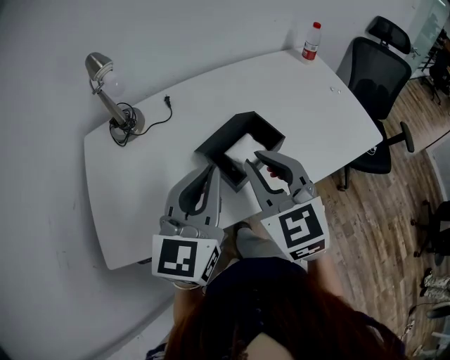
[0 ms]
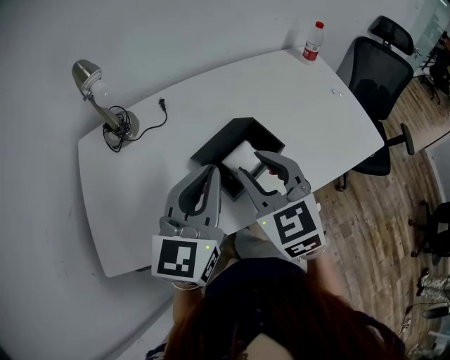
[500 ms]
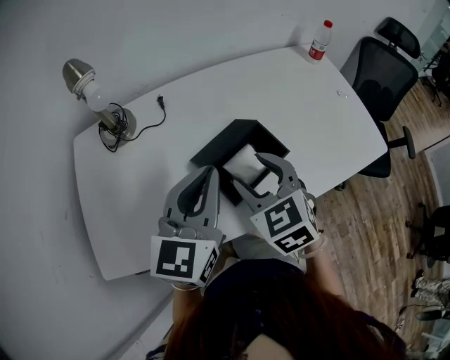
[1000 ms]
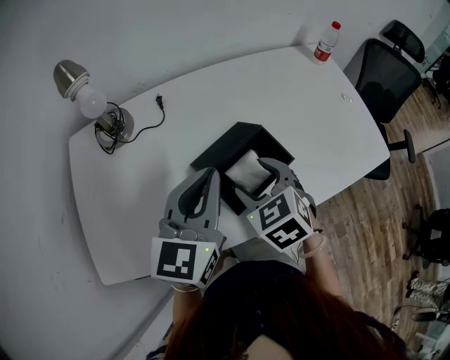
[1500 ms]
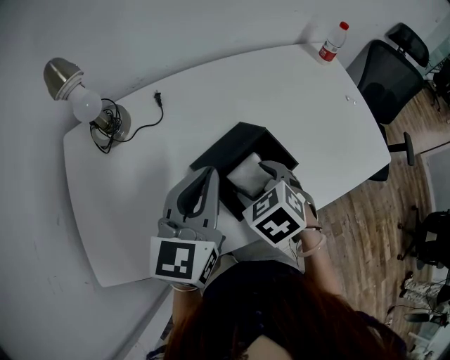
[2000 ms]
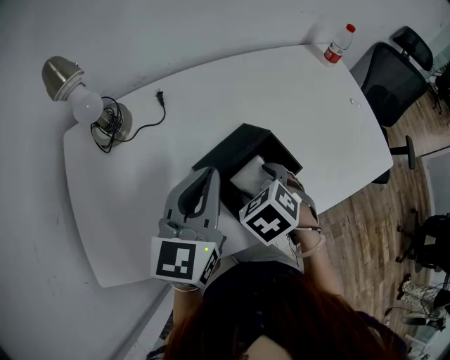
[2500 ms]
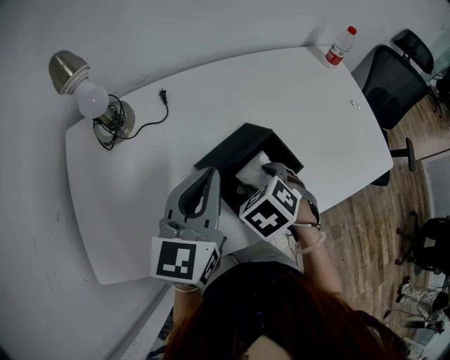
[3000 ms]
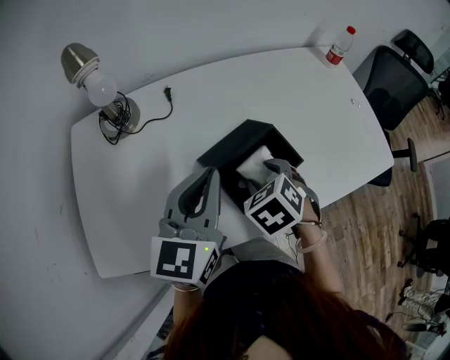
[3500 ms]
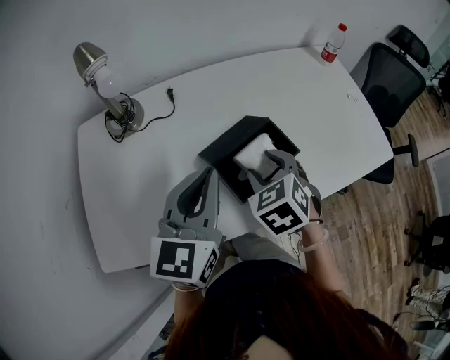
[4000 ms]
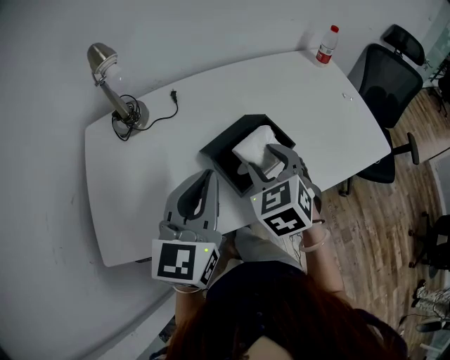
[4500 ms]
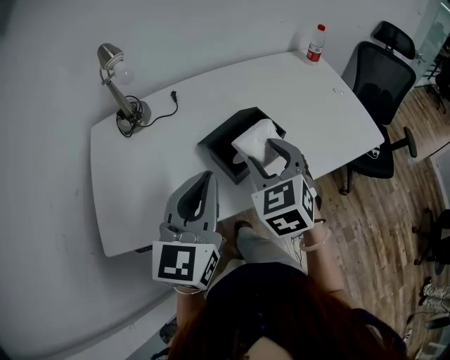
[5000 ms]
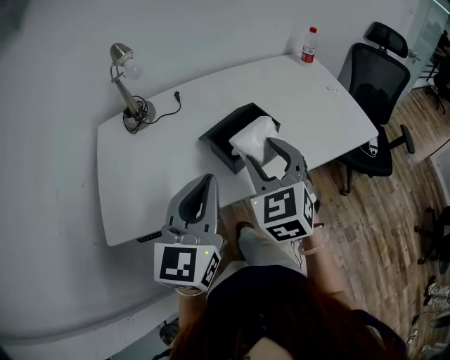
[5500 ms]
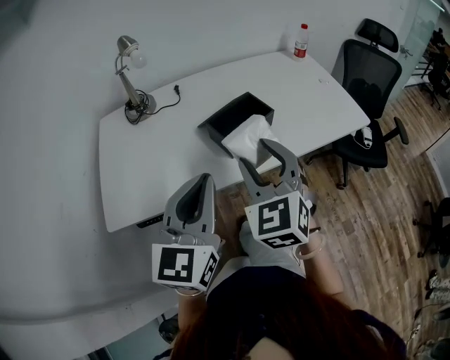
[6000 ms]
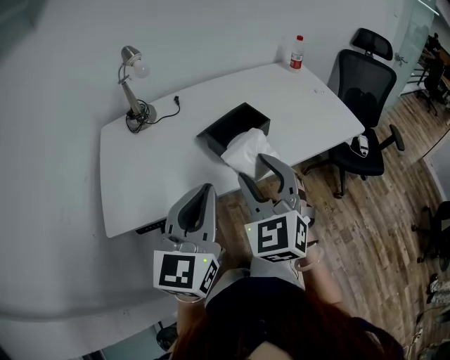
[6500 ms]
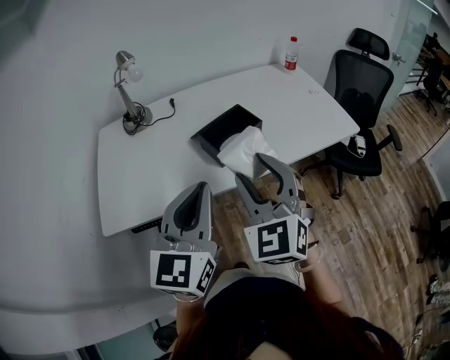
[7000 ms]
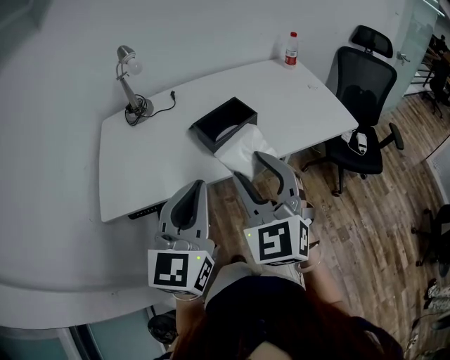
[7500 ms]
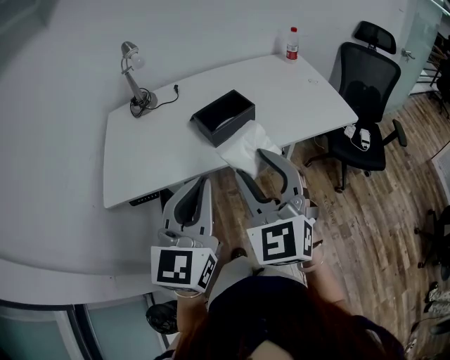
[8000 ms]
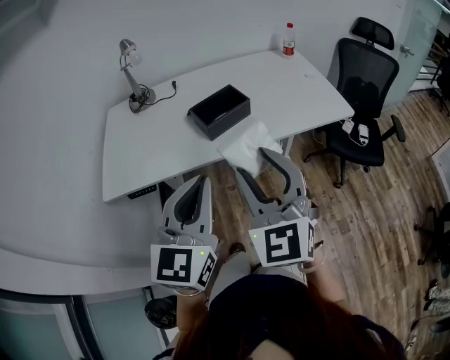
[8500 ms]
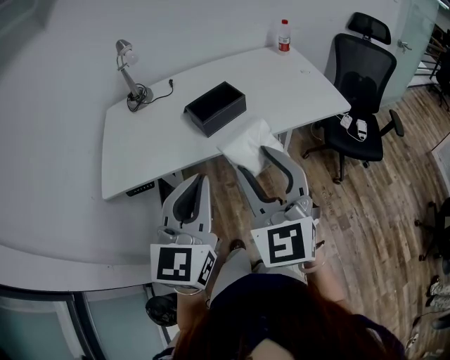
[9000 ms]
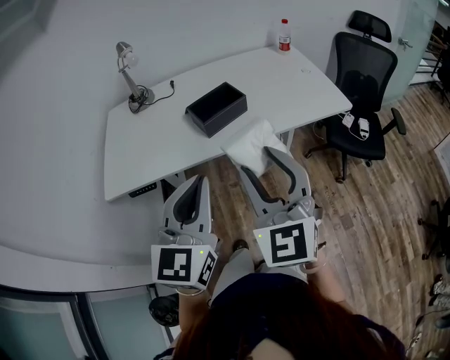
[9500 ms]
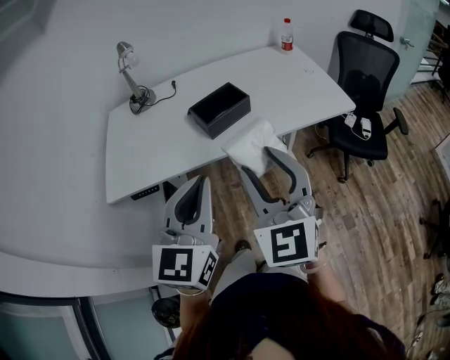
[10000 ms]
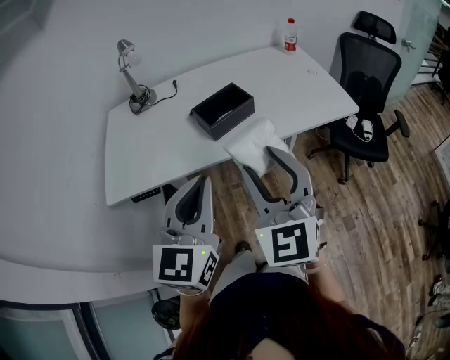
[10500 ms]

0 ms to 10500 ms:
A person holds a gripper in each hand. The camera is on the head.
0 ms to 2000 ms: The right gripper is displaced downward and forward by about 20 cm, tilts its fingers roughly 40 degrees downward, and opens its fingers. Meanwhile the left gripper travels forward and downward by approximately 10 cm.
2000 ms to 4000 ms: The left gripper ends up approximately 5 cm from where it was.
4000 ms to 6500 ms: The left gripper moves backward, approximately 20 cm; the right gripper goes approximately 25 cm backward and upward, and tilts its fingers roughly 40 degrees upward.
6500 ms to 8500 ms: The two grippers go some 15 cm backward and to the right.
8500 ms to 10500 ms: The grippers stay close to where they were, moving slightly.

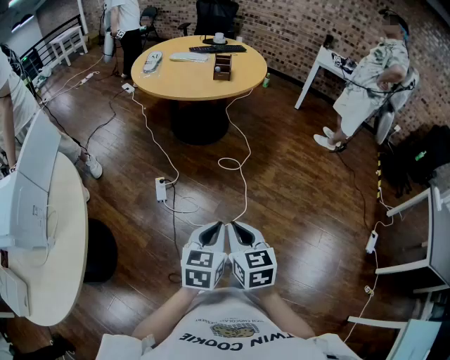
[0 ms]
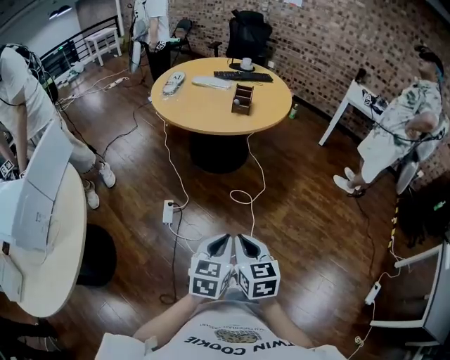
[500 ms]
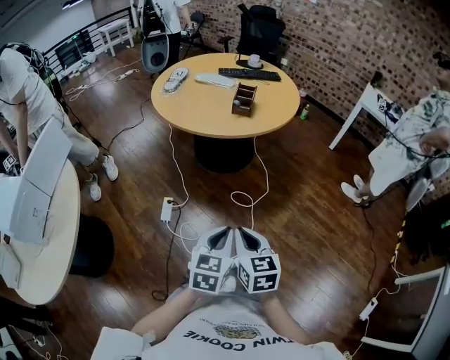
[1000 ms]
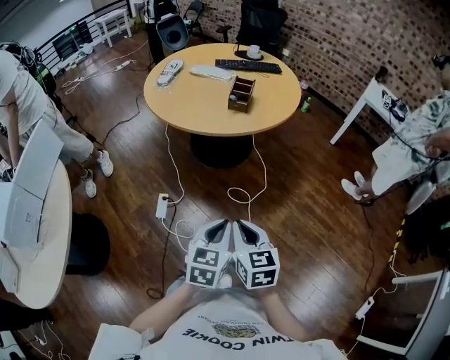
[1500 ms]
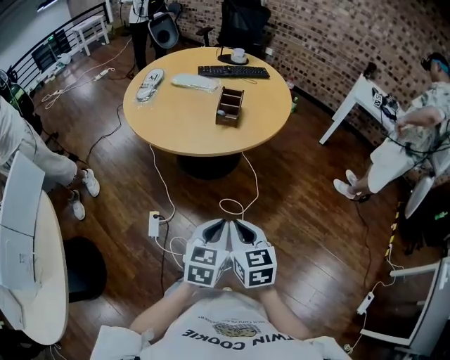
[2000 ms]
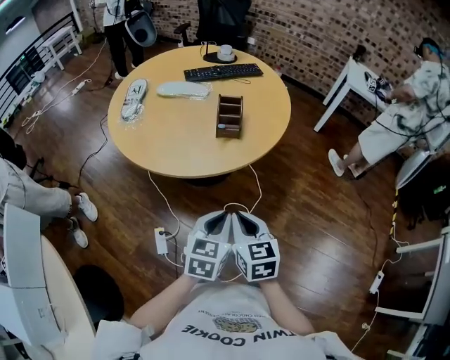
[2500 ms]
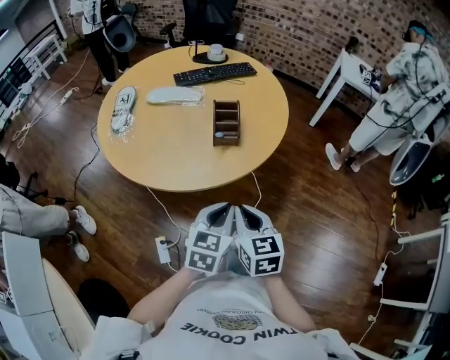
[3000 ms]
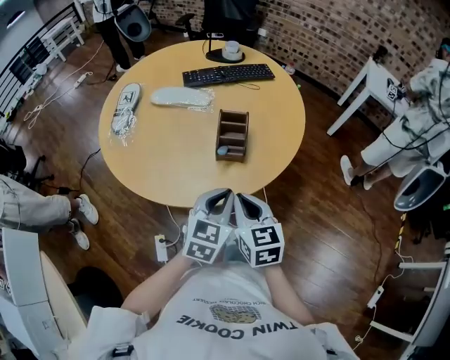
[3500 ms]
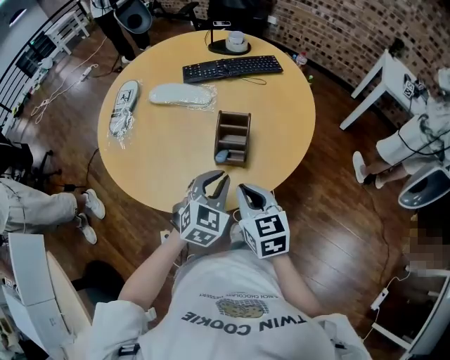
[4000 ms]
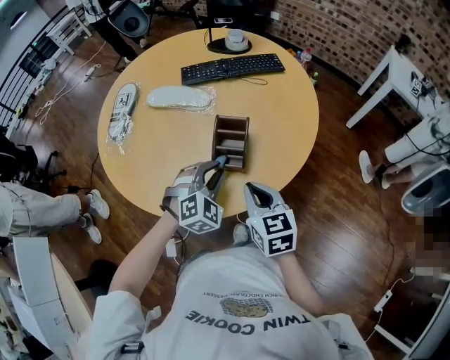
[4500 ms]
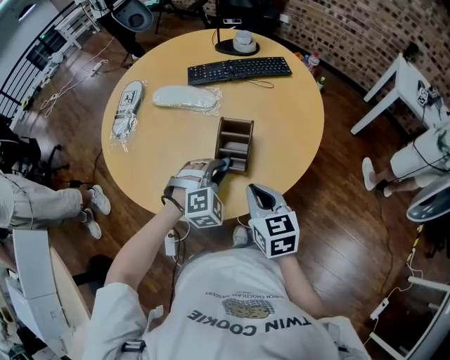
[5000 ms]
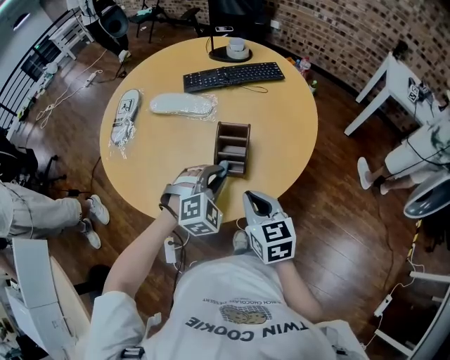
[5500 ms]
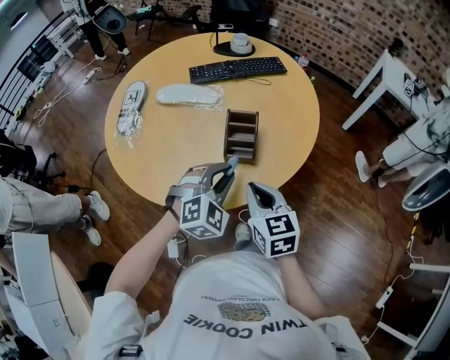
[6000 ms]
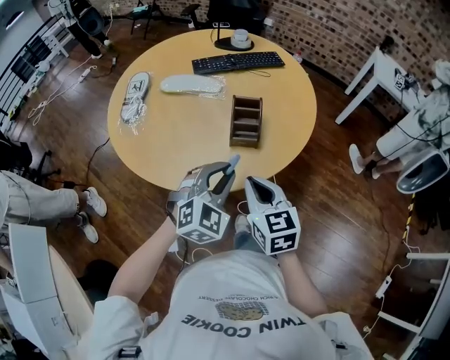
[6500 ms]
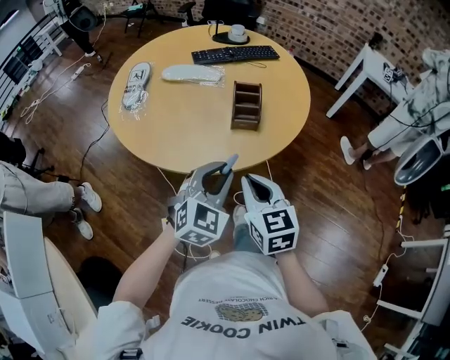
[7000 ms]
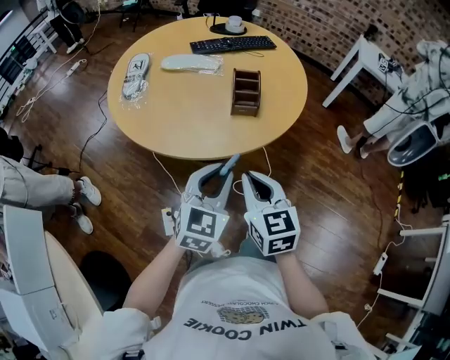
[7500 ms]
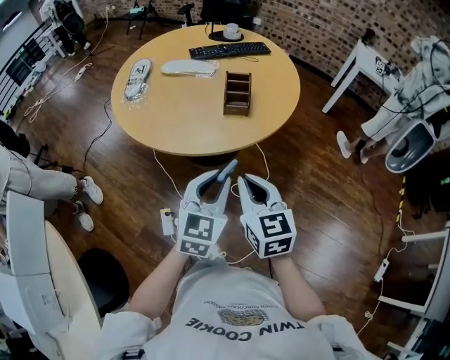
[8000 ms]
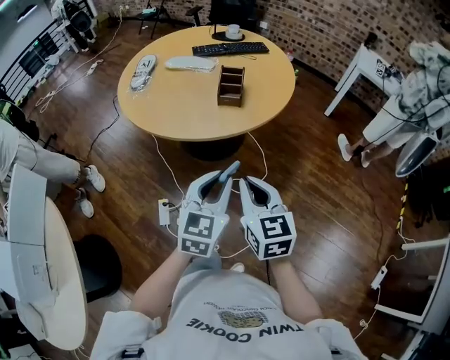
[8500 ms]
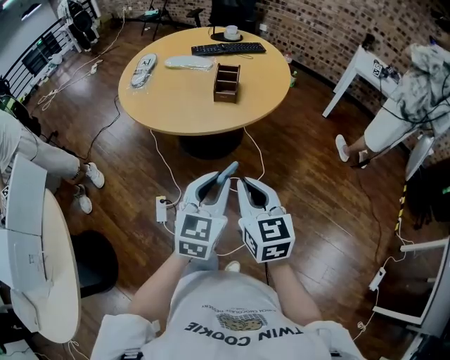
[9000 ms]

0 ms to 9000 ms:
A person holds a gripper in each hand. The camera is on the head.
0 ms to 2000 ms: The two grippers travel together, forward, about 40 cm.
2000 ms to 4500 ms: The pair of grippers is taken forward, approximately 40 cm. The left gripper rolls clockwise, seen from behind, by some 60 degrees, and opens.
4500 ms to 7000 ms: The right gripper is displaced backward and to the left by roughly 20 cm, while the left gripper is displaced backward and upward by approximately 25 cm, and rotates approximately 30 degrees.
7000 ms to 9000 ms: Both grippers move backward and to the right, approximately 25 cm. The left gripper changes its angle by roughly 30 degrees.

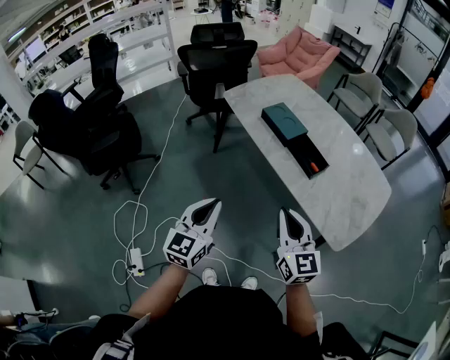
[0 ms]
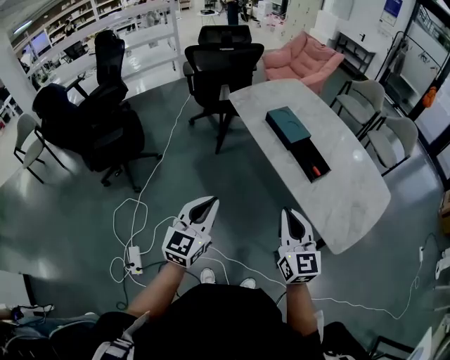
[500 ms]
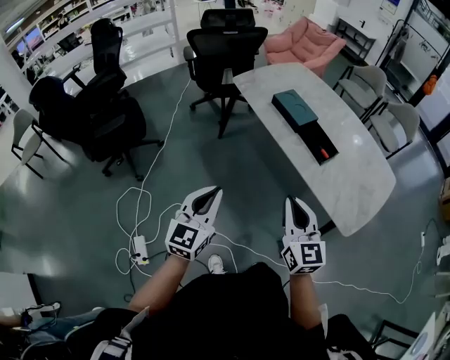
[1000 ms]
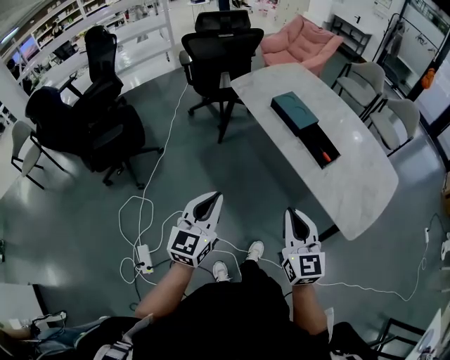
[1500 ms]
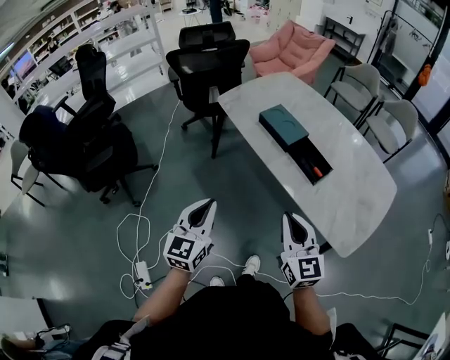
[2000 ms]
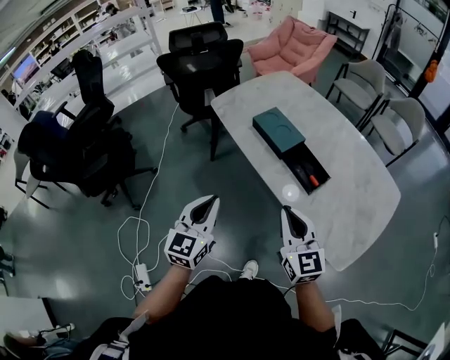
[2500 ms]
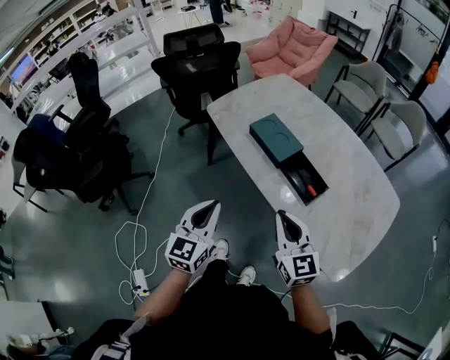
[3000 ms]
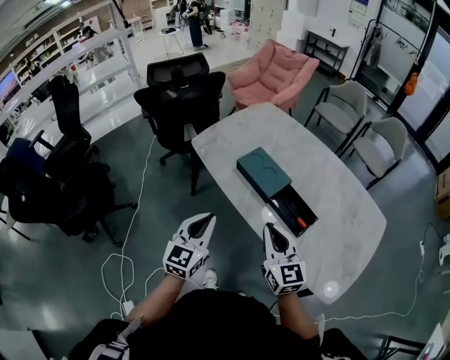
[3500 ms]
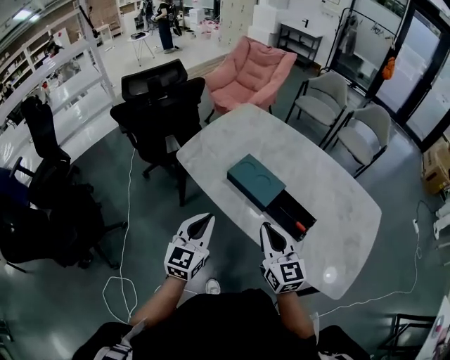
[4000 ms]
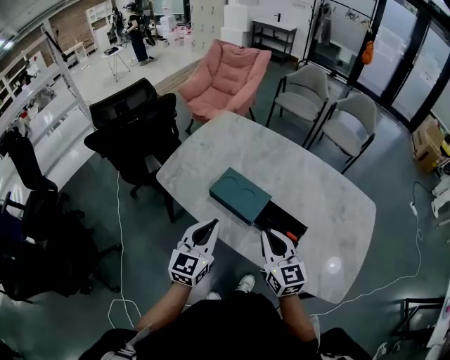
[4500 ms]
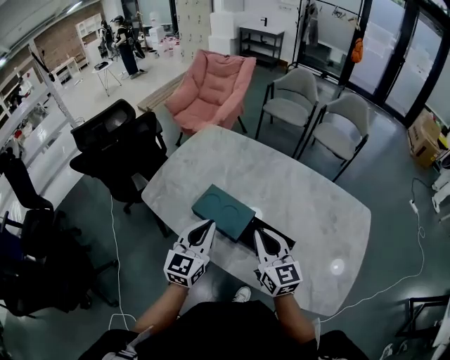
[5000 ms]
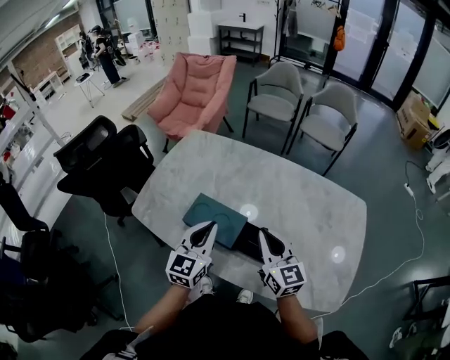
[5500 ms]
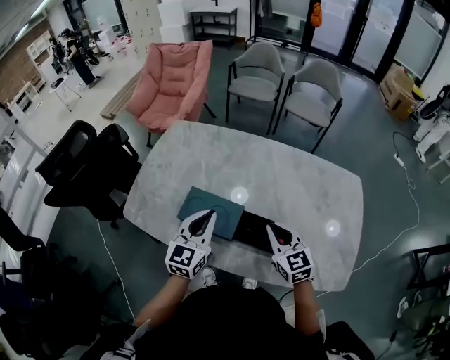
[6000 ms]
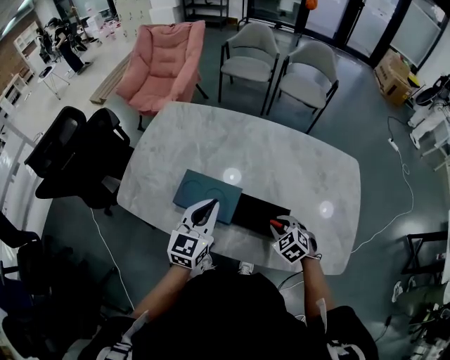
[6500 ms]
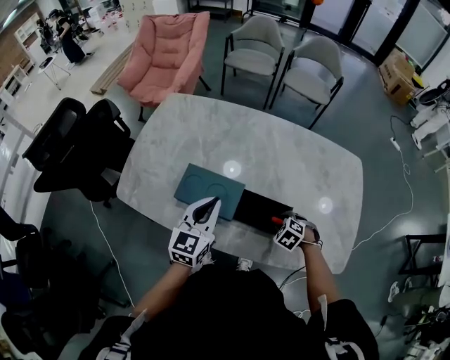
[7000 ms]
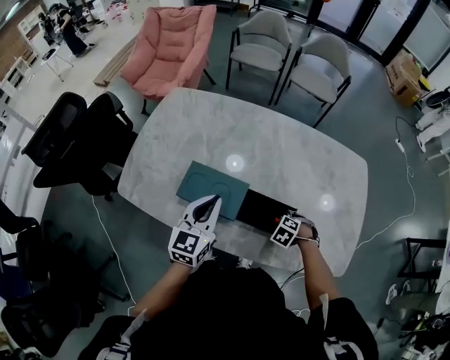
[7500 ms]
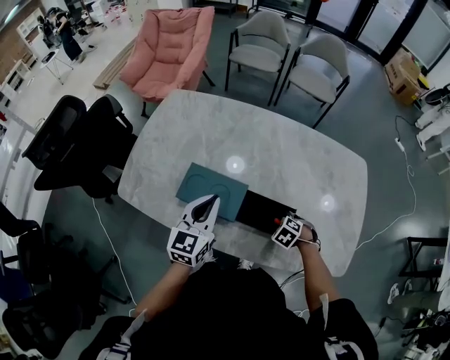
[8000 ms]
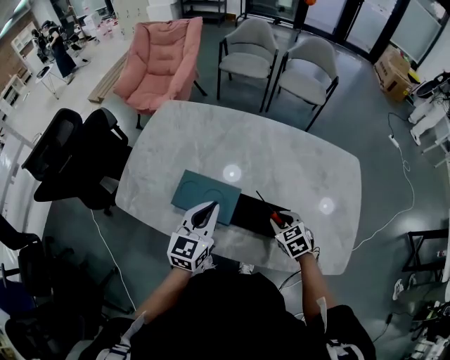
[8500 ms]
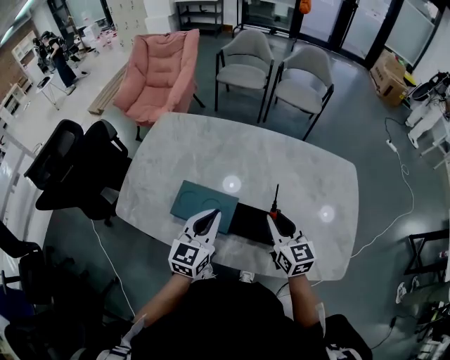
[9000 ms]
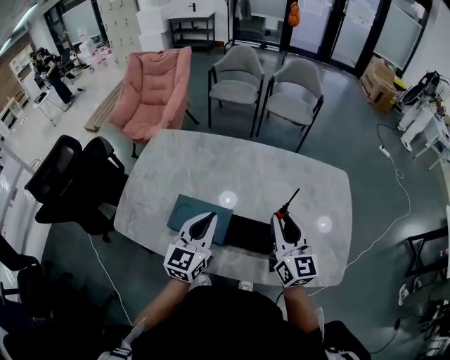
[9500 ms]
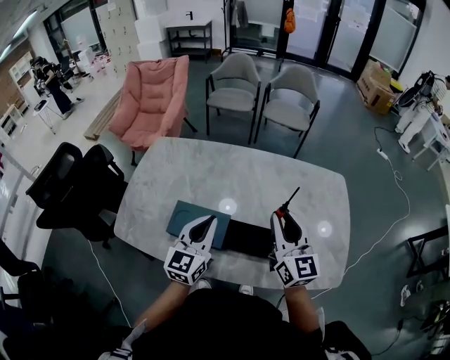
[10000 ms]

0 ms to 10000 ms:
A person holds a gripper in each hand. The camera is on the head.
0 ms to 2000 ms: The grippers both shift forward by roughly 5 cm.
2000 ms to 4000 ms: The grippers both shift forward by roughly 30 cm.
4000 ms to 6000 ms: The grippers both shift forward and to the right by approximately 25 cm. The right gripper turns by approximately 20 degrees; the left gripper turns by roughly 20 degrees.
6000 ms to 8000 ms: The right gripper heads downward, covering some 25 cm, and angles its fingers downward, by approximately 60 degrees.
8000 ms to 10000 ms: The right gripper moves upward, approximately 40 cm, and tips its fingers upward by some 90 degrees. The left gripper travels upward by about 5 cm.
